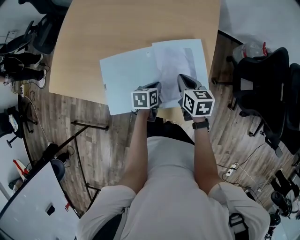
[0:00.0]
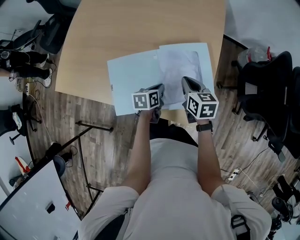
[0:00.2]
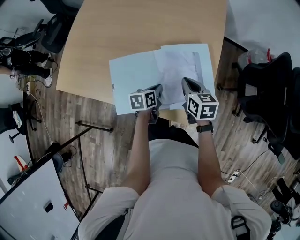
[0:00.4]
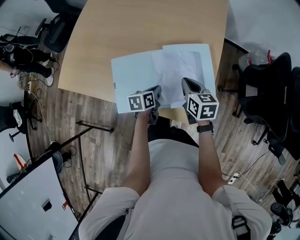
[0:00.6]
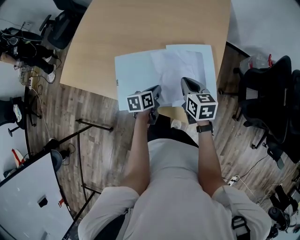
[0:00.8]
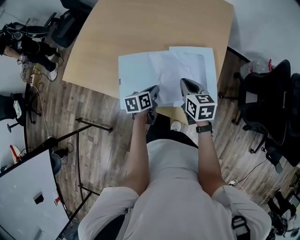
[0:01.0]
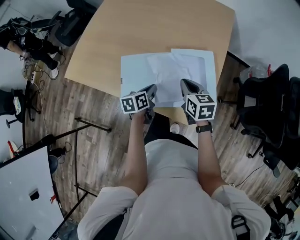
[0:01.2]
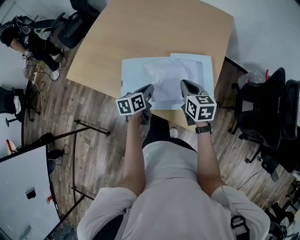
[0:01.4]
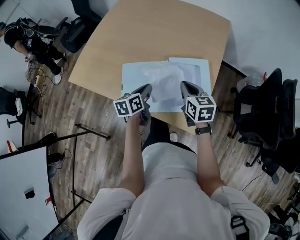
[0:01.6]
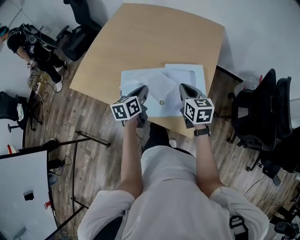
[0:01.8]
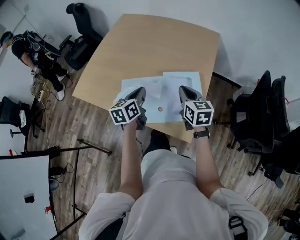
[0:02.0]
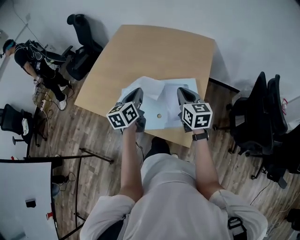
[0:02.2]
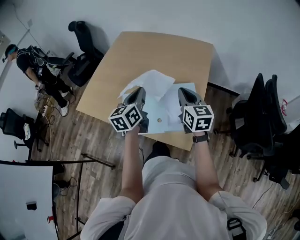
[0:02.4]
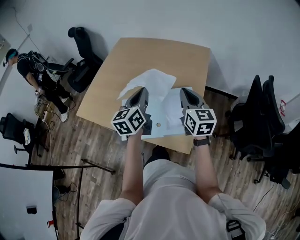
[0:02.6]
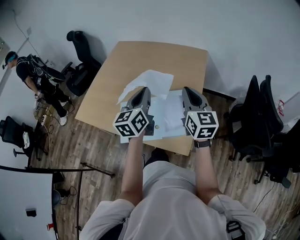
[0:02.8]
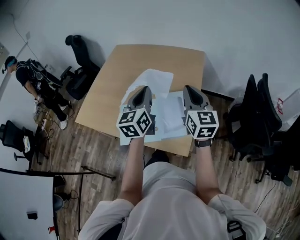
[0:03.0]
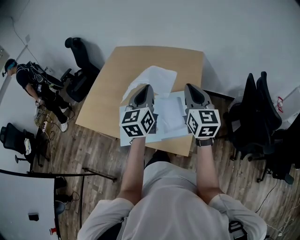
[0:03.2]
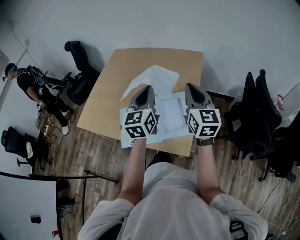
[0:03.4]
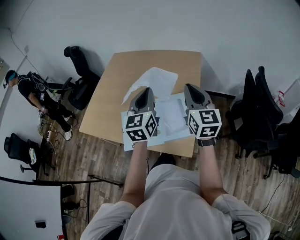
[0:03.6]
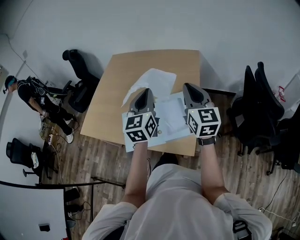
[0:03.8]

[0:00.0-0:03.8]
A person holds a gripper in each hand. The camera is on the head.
0:00.0 to 0:01.2: The left gripper is displaced to the left and upward by about 10 cm, and changes its angle by roughly 20 degrees. The right gripper heads upward and to the left, covering some 10 cm.
0:01.2 to 0:02.6: The two grippers go about 25 cm upward. The left gripper rotates some 40 degrees. Meanwhile the right gripper swivels approximately 30 degrees.
0:02.6 to 0:03.8: The left gripper moves to the right and upward, approximately 10 cm; the right gripper travels upward by some 5 cm.

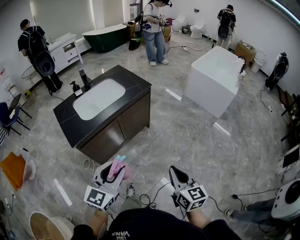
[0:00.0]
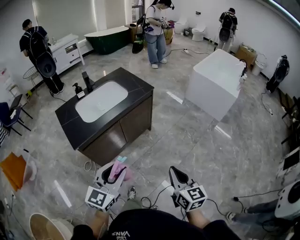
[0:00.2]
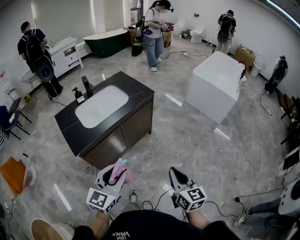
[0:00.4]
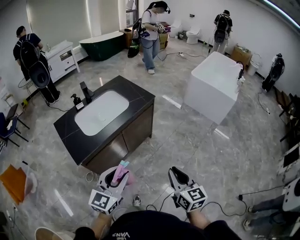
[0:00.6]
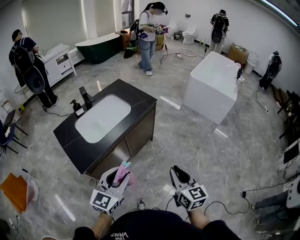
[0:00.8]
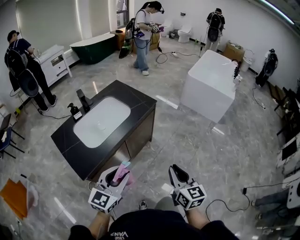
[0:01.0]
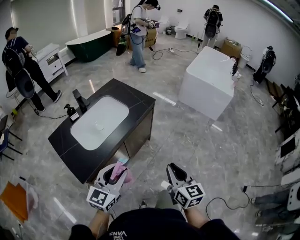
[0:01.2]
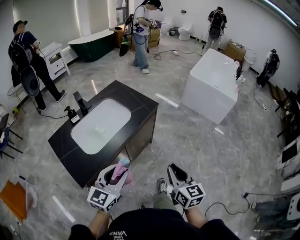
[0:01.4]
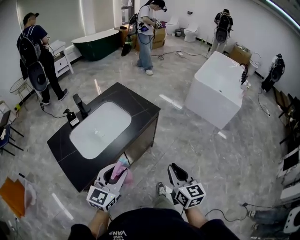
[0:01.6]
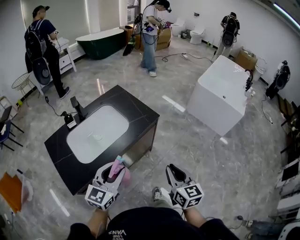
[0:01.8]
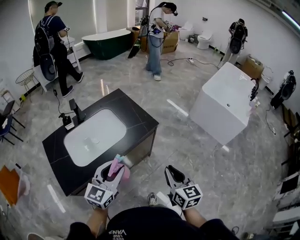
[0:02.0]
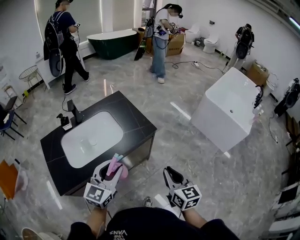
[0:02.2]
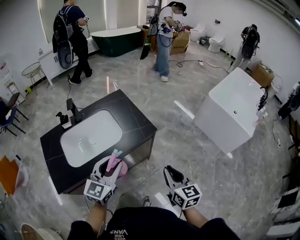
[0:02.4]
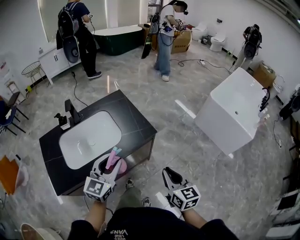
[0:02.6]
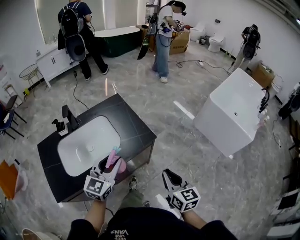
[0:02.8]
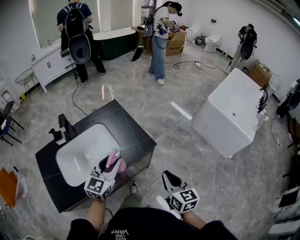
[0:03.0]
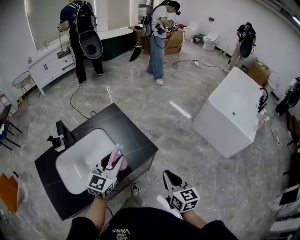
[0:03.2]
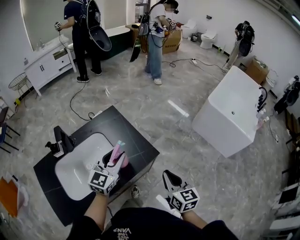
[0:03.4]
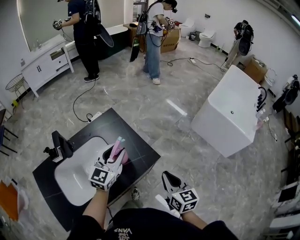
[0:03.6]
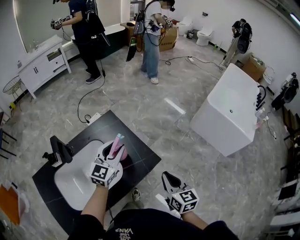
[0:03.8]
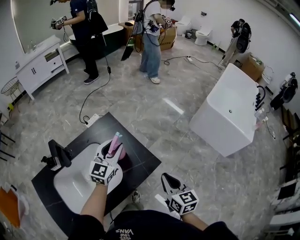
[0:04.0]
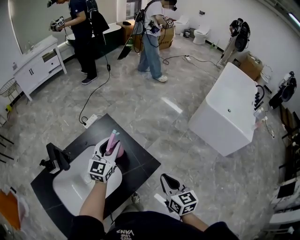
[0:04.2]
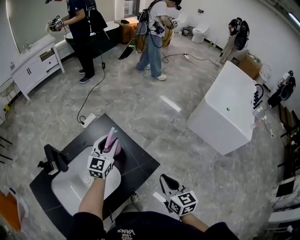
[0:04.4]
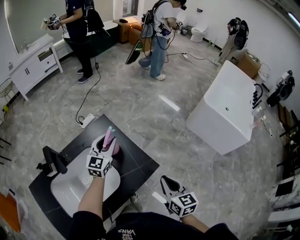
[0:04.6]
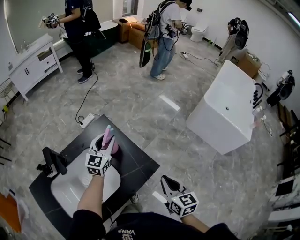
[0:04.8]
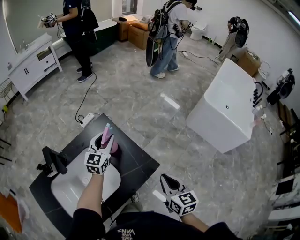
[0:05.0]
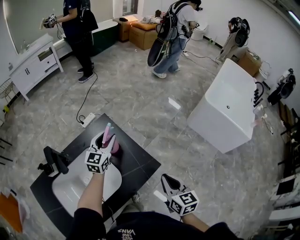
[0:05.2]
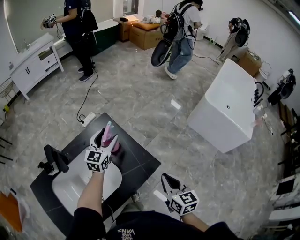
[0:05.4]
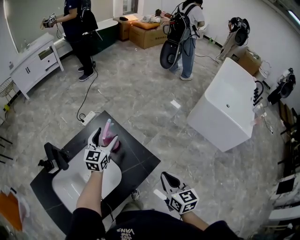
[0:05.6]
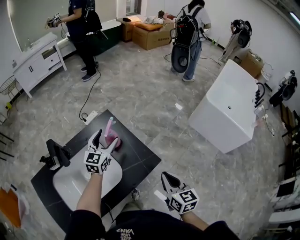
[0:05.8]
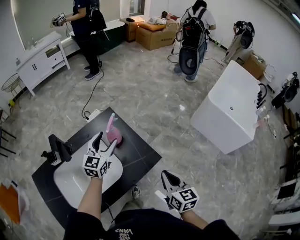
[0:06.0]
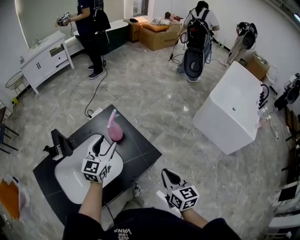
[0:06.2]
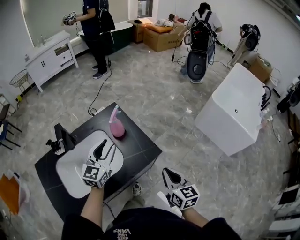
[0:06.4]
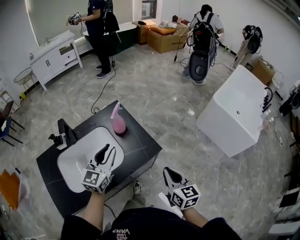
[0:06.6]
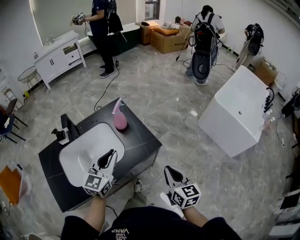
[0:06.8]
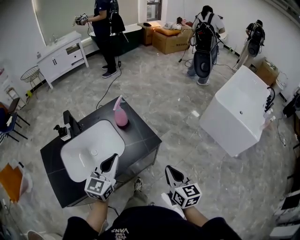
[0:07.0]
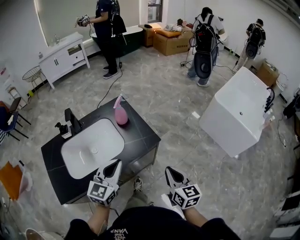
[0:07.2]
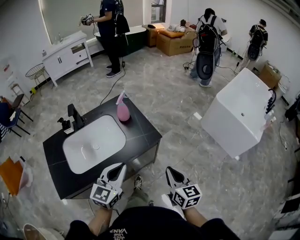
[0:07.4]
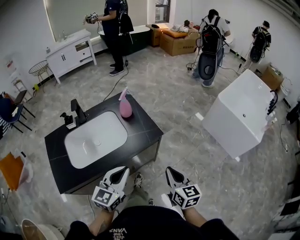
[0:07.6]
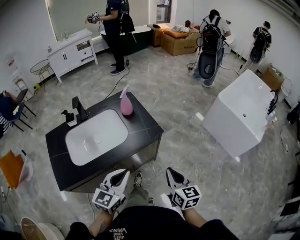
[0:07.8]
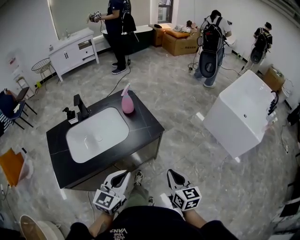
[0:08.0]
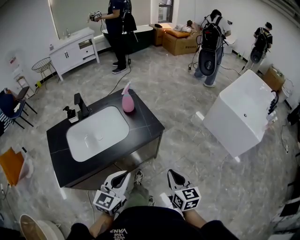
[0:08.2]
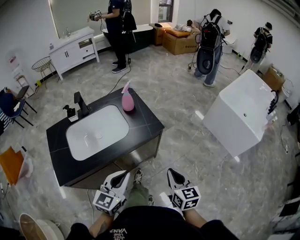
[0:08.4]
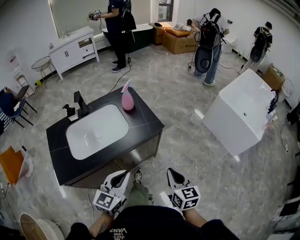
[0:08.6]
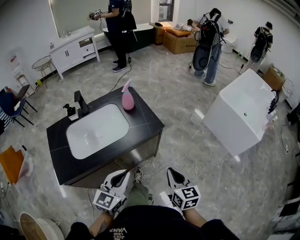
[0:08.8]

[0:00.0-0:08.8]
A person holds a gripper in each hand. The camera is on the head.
0:00.0 to 0:01.4: The grippers both shift forward and to the left by some 25 cm.
0:01.4 to 0:03.0: The two grippers go approximately 35 cm forward.
0:03.0 to 0:04.4: The right gripper moves forward, some 15 cm. The left gripper travels forward by approximately 25 cm.
0:04.4 to 0:05.8: The left gripper opens.
0:05.8 to 0:07.4: The left gripper is displaced backward by roughly 35 cm, and closes up, while the right gripper travels backward by some 15 cm.
0:07.4 to 0:08.8: Both grippers travel together backward, roughly 10 cm.

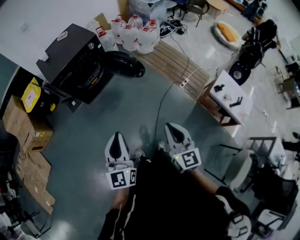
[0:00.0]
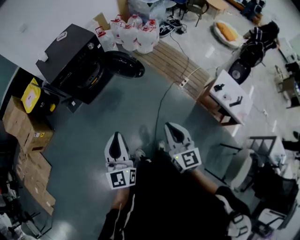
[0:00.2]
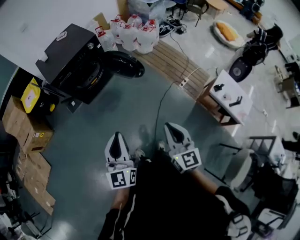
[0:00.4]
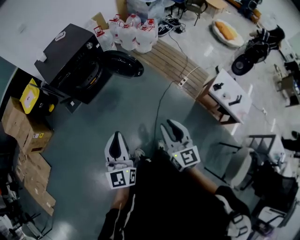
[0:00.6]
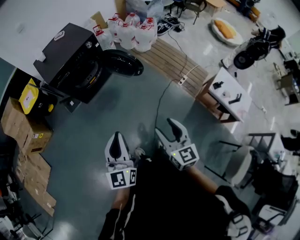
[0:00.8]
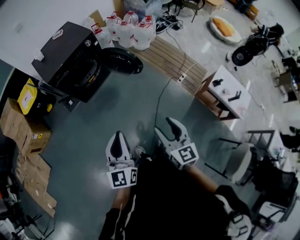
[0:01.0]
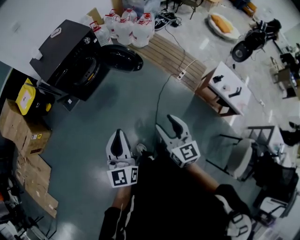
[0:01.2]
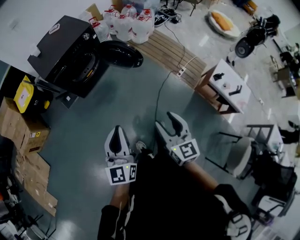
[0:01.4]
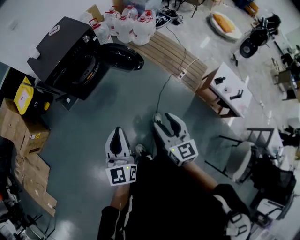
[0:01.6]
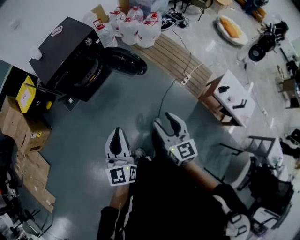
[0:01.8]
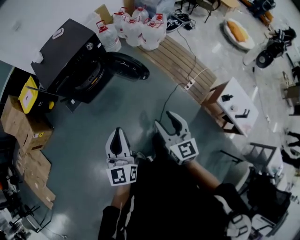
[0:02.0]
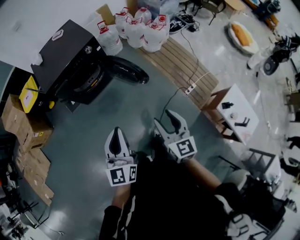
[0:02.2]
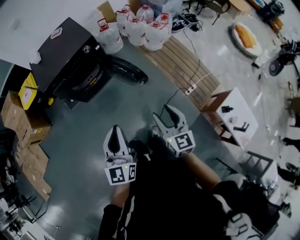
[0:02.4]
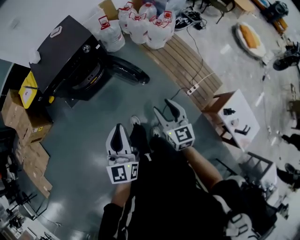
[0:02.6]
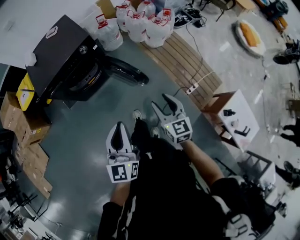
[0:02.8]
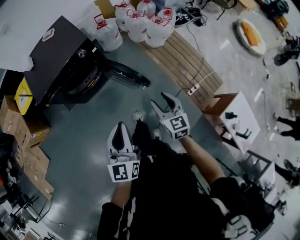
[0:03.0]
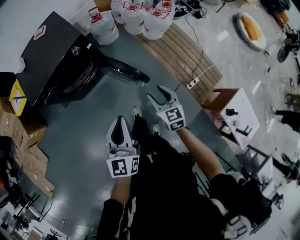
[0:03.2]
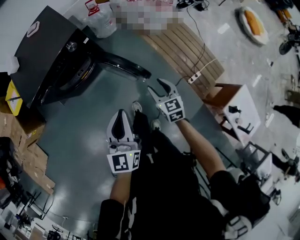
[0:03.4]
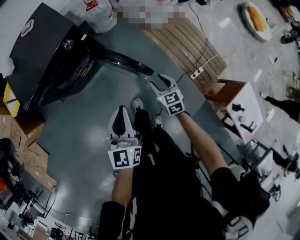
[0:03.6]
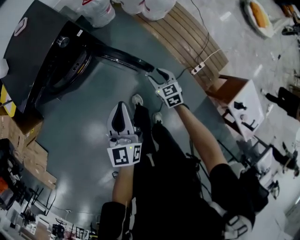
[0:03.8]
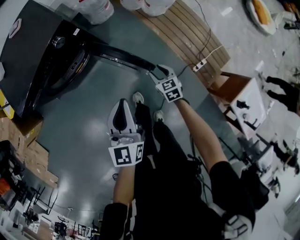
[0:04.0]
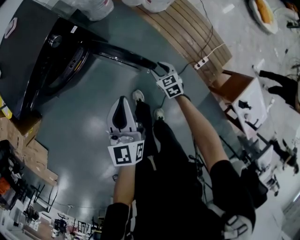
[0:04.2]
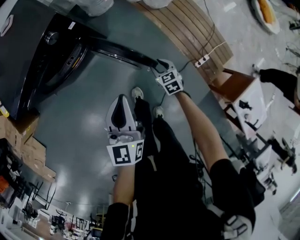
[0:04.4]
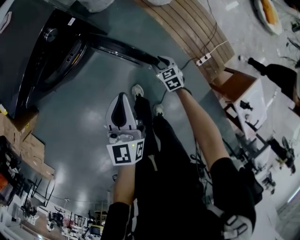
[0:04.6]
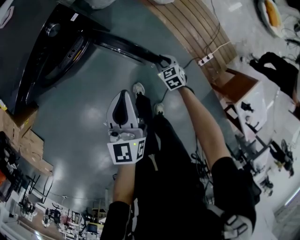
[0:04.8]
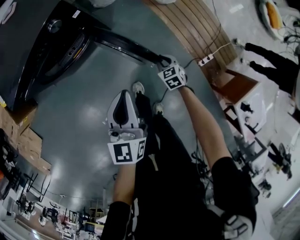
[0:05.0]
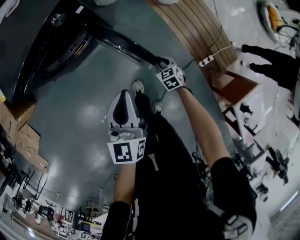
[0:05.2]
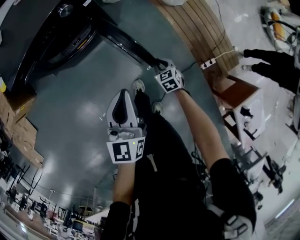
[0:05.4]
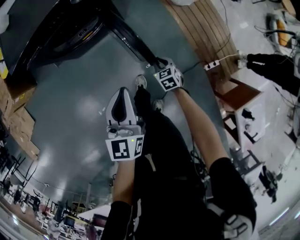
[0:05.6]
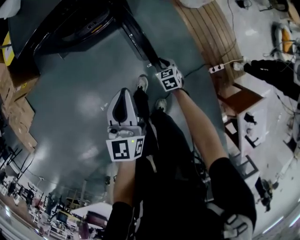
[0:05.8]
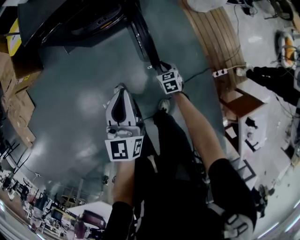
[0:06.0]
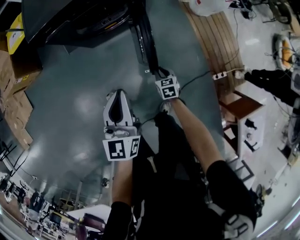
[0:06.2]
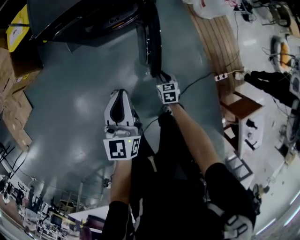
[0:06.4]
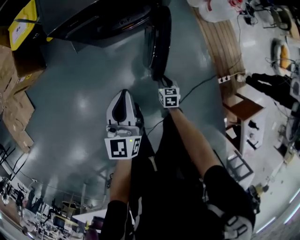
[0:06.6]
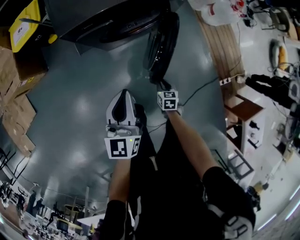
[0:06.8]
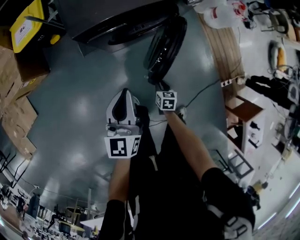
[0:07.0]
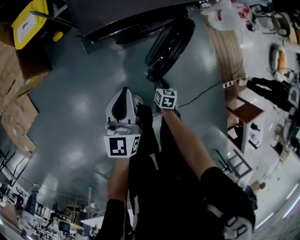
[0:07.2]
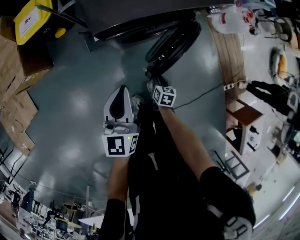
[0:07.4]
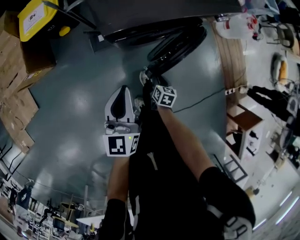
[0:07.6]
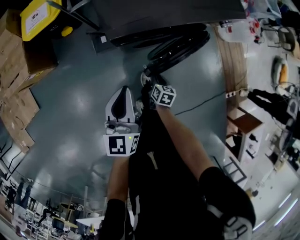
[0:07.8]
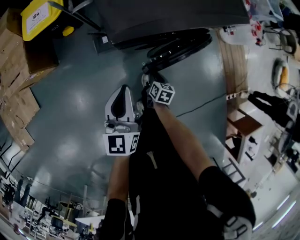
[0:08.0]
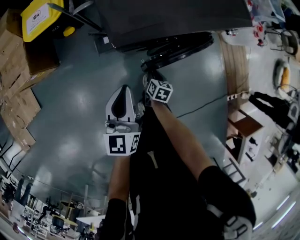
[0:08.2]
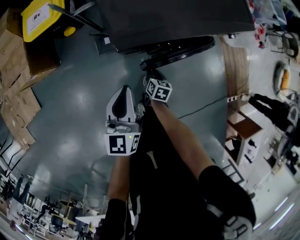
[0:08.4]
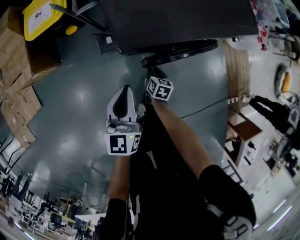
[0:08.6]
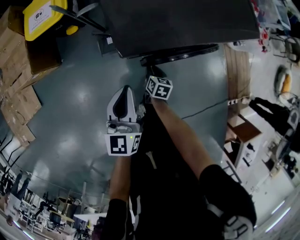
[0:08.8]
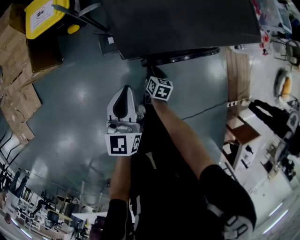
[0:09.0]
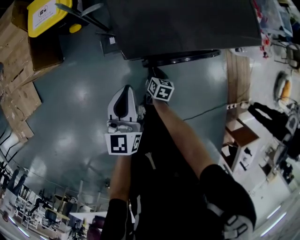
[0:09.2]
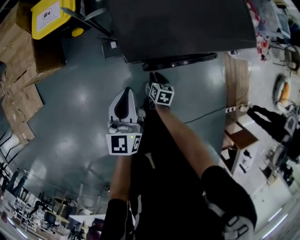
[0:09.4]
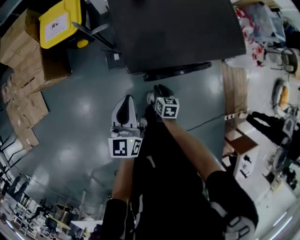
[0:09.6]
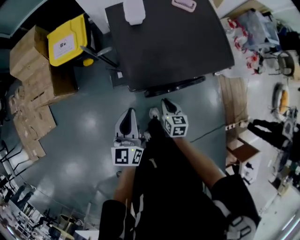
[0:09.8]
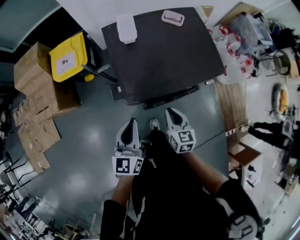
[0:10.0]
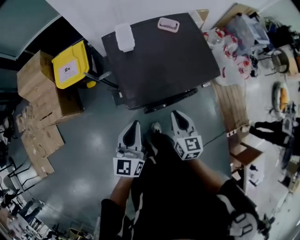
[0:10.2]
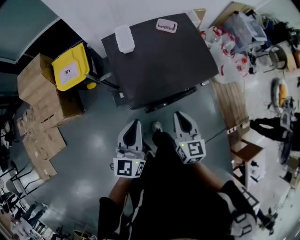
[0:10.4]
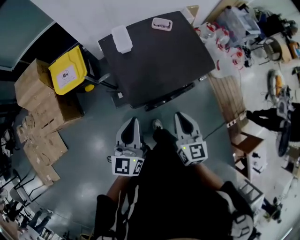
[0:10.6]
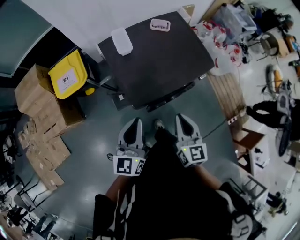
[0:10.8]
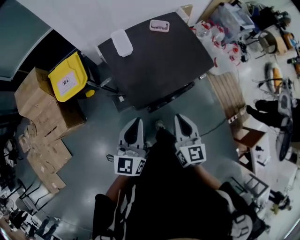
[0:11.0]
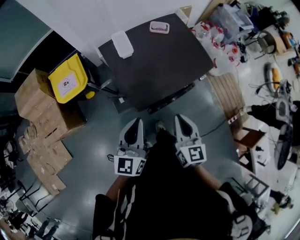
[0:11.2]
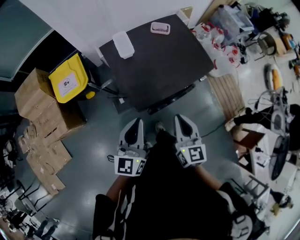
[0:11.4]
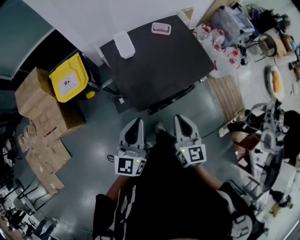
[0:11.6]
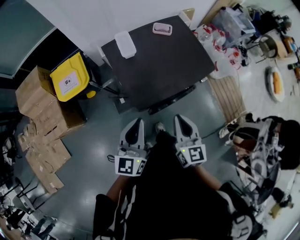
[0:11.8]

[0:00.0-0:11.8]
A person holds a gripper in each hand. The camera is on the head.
0:00.0 to 0:01.4: The left gripper changes place by about 5 cm, while the right gripper is displaced to the left by roughly 5 cm, and opens.
0:01.4 to 0:03.0: The right gripper moves forward, about 40 cm. Meanwhile the left gripper is displaced forward and to the right by some 35 cm.
0:03.0 to 0:04.4: The left gripper is displaced downward and forward by some 25 cm. The right gripper heads downward and forward, covering some 40 cm, and swivels some 30 degrees.
0:04.4 to 0:06.0: The two grippers go about 20 cm to the left and backward. The right gripper closes up.
0:06.0 to 0:07.4: The left gripper shifts roughly 40 cm to the left and forward. The right gripper travels to the left by approximately 35 cm, and rotates about 30 degrees.
0:07.4 to 0:08.8: The left gripper heads forward and to the left, covering roughly 10 cm; the right gripper is displaced forward and to the left by roughly 20 cm.
0:08.8 to 0:10.4: The right gripper travels upward by approximately 50 cm, and rotates some 40 degrees. The left gripper travels upward by about 25 cm.
0:10.4 to 0:11.8: The right gripper changes place by some 10 cm.
